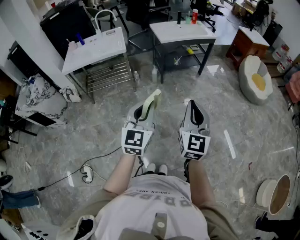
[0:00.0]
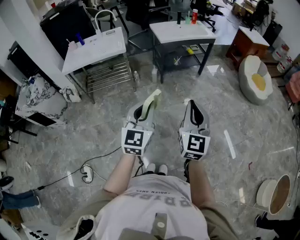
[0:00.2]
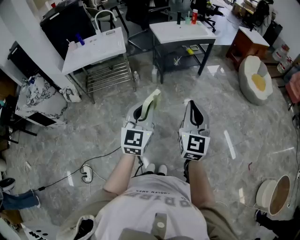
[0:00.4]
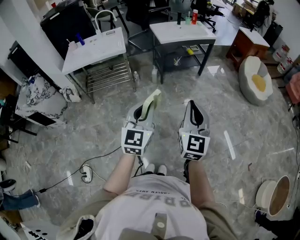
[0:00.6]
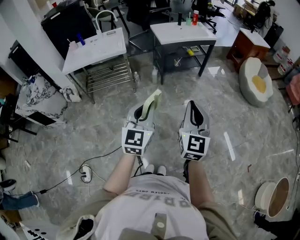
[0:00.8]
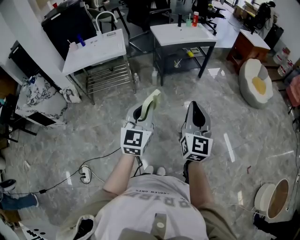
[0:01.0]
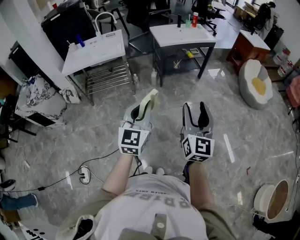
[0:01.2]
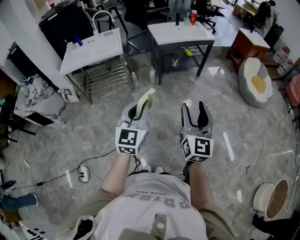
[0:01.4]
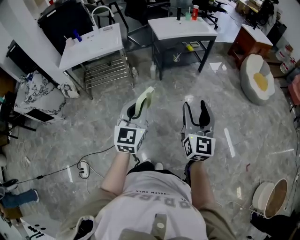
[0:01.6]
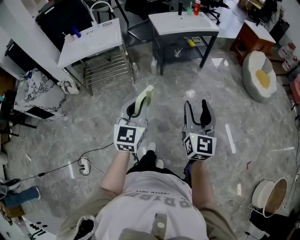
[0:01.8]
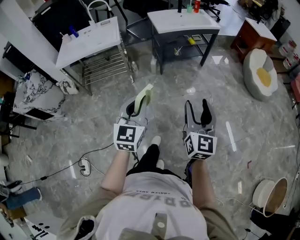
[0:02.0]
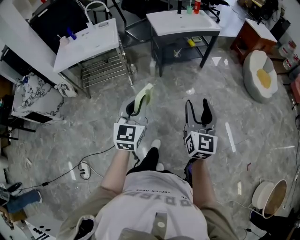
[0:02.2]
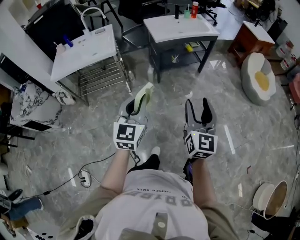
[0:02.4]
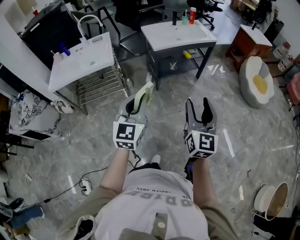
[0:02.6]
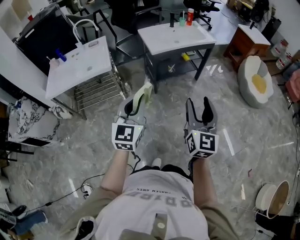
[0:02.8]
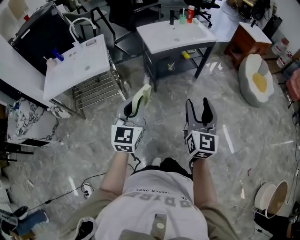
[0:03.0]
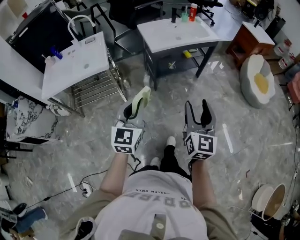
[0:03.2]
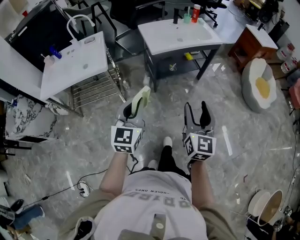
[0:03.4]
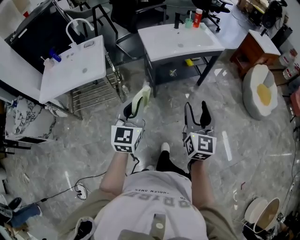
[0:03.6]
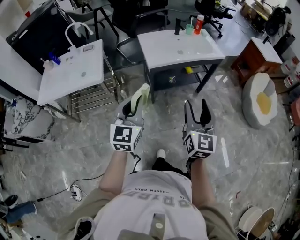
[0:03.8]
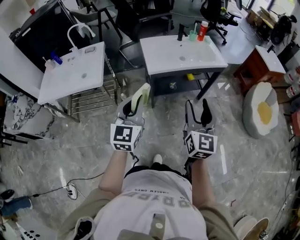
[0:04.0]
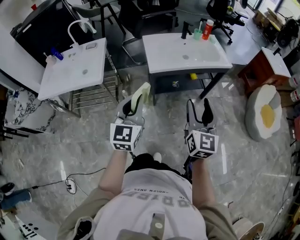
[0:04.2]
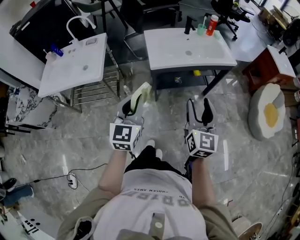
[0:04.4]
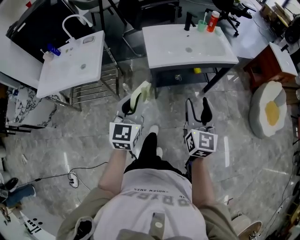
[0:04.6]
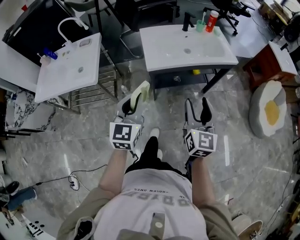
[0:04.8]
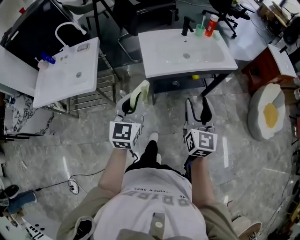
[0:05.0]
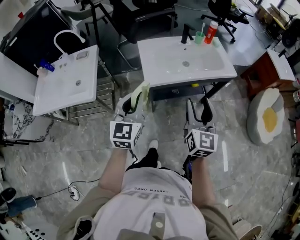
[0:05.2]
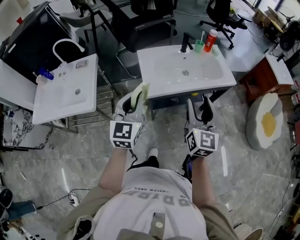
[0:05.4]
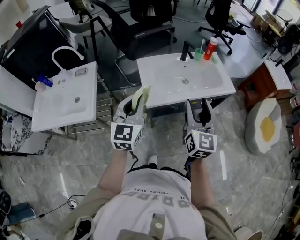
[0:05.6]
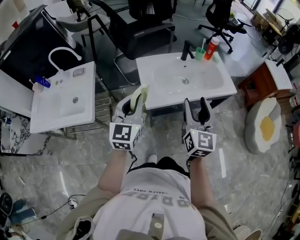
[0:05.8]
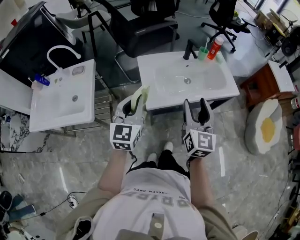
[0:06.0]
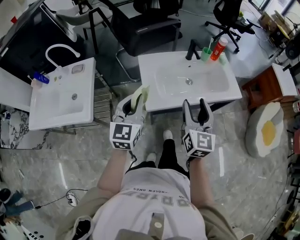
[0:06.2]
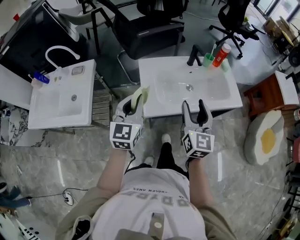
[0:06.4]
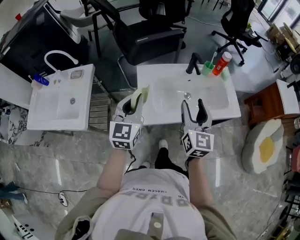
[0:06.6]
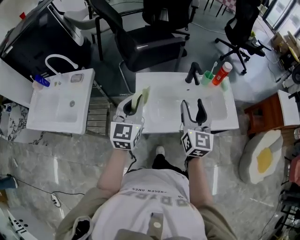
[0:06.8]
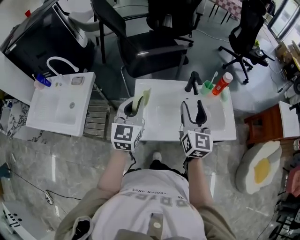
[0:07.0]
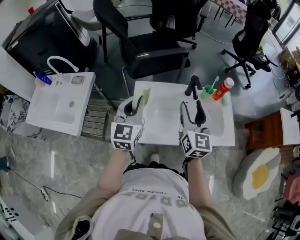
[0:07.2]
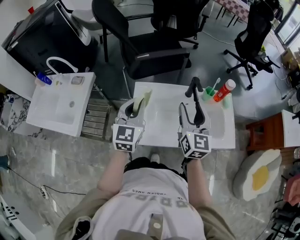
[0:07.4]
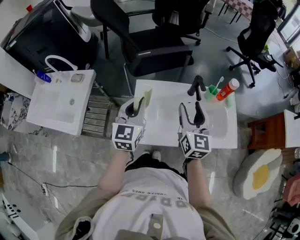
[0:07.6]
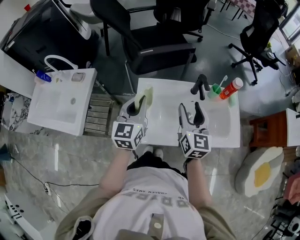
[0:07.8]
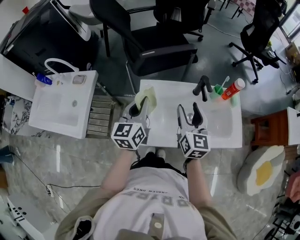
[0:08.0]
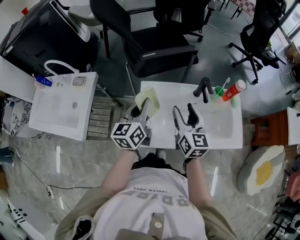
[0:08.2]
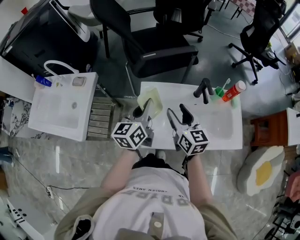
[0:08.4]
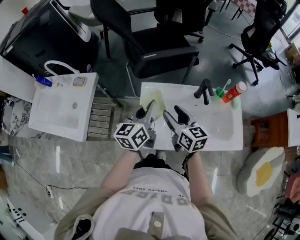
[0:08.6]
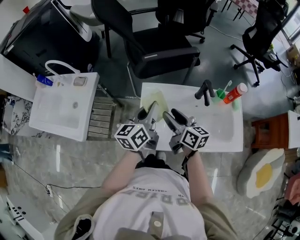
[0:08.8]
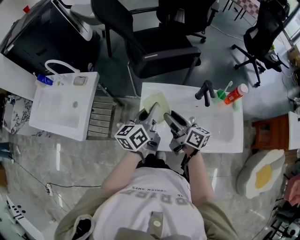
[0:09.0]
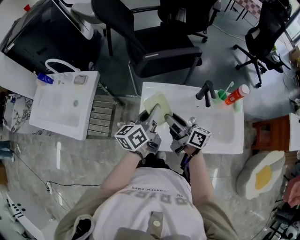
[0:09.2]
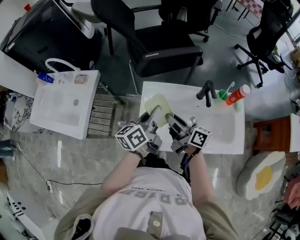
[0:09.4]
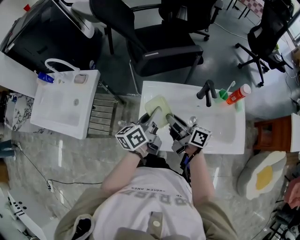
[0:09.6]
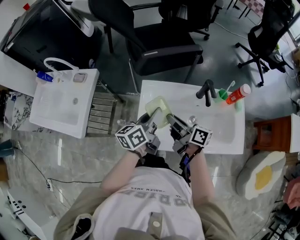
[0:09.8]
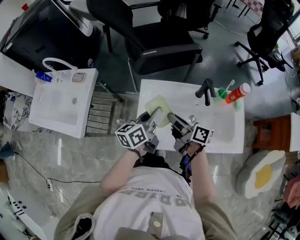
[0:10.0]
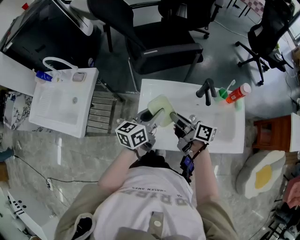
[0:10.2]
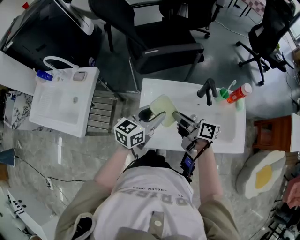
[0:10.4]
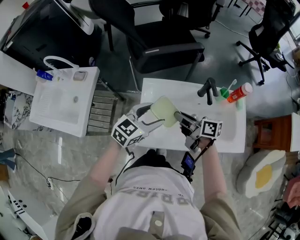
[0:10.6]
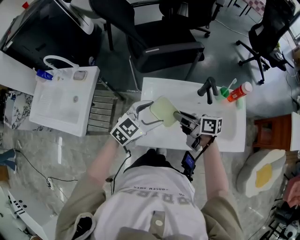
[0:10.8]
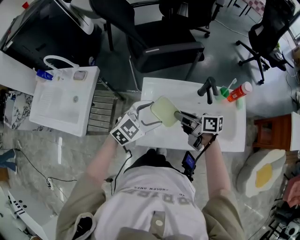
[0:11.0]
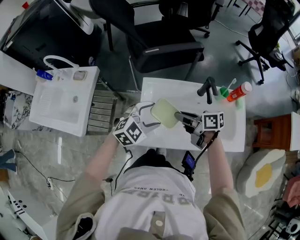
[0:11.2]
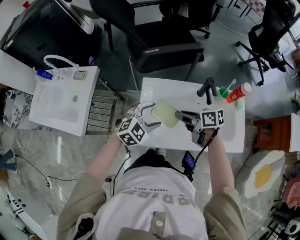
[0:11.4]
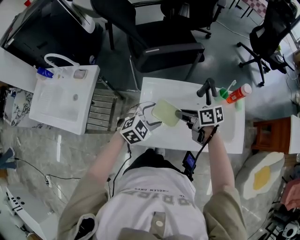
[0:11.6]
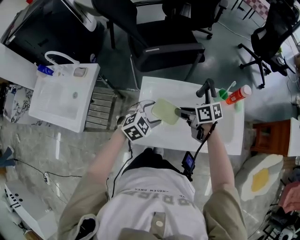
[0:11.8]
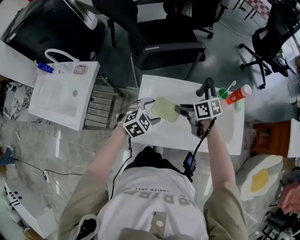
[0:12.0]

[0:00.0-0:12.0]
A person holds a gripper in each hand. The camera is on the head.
0:00.0 to 0:01.6: The right gripper goes about 5 cm to the right, and opens.
0:01.6 to 0:03.0: The two grippers go roughly 25 cm forward.
0:03.0 to 0:04.4: Both grippers travel together forward, some 25 cm.
0:04.4 to 0:06.0: The grippers both shift forward by roughly 25 cm.
0:06.0 to 0:07.6: Both grippers move forward, about 25 cm.
0:07.6 to 0:09.0: The left gripper rotates around the line of its fingers by some 40 degrees, counterclockwise from behind. The right gripper moves to the left and downward, approximately 15 cm, and rotates approximately 60 degrees.
0:09.0 to 0:10.4: The right gripper closes up. Meanwhile the left gripper changes place by about 5 cm, rotates roughly 30 degrees, and opens.
0:10.4 to 0:12.0: The left gripper moves downward, roughly 10 cm, tips its fingers downward by approximately 30 degrees, and opens up, while the right gripper changes its angle by approximately 40 degrees.

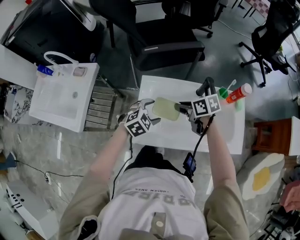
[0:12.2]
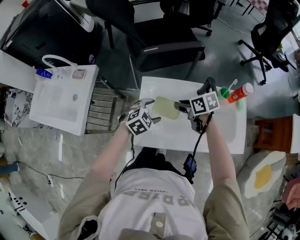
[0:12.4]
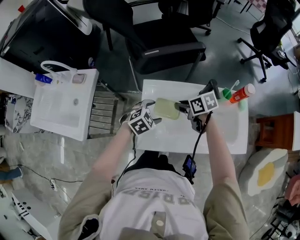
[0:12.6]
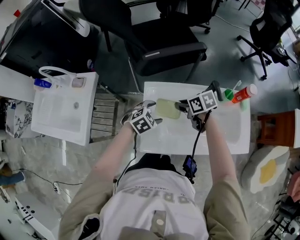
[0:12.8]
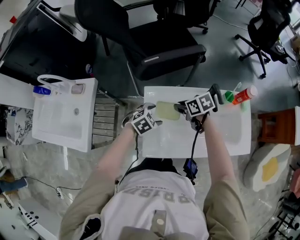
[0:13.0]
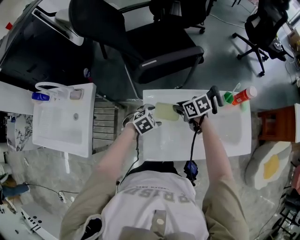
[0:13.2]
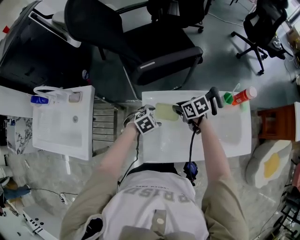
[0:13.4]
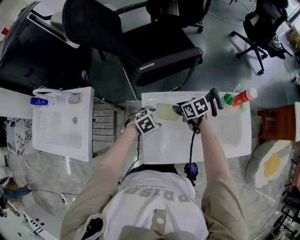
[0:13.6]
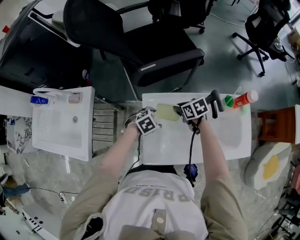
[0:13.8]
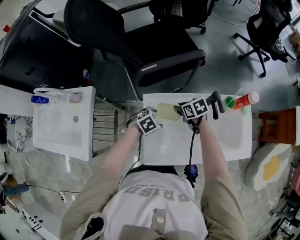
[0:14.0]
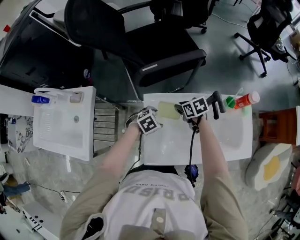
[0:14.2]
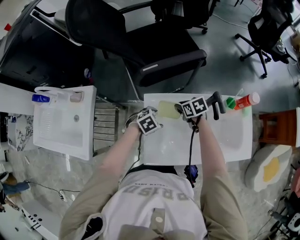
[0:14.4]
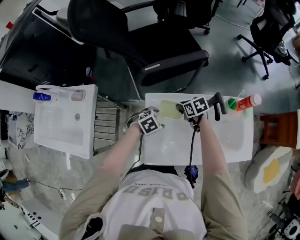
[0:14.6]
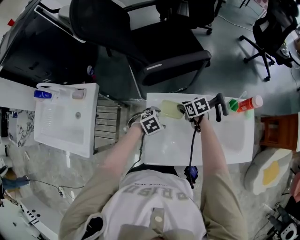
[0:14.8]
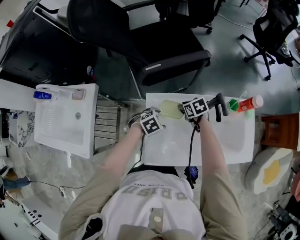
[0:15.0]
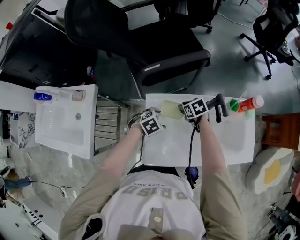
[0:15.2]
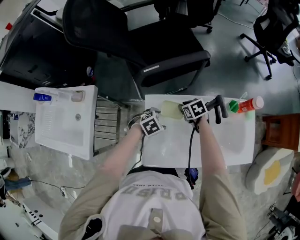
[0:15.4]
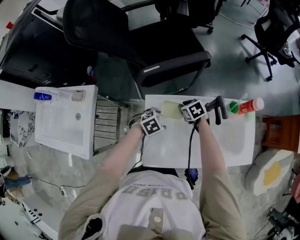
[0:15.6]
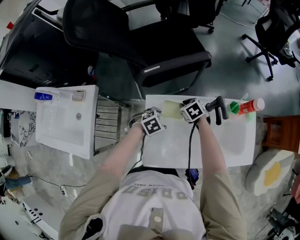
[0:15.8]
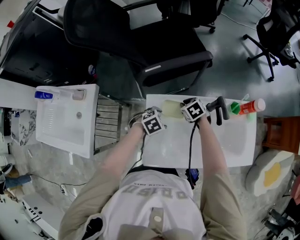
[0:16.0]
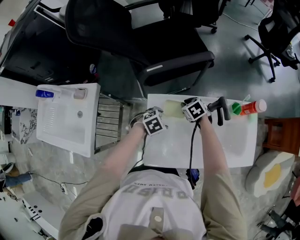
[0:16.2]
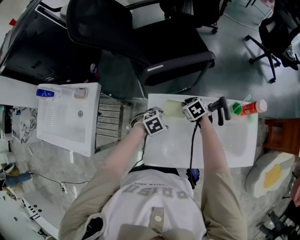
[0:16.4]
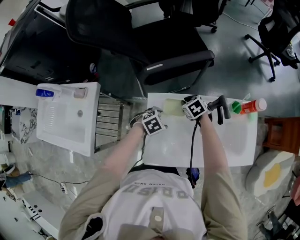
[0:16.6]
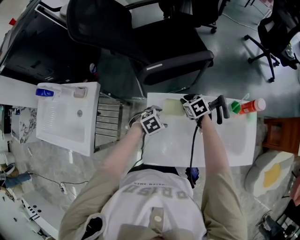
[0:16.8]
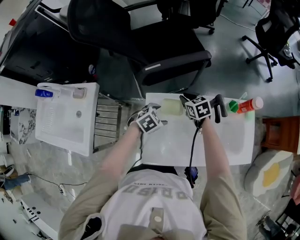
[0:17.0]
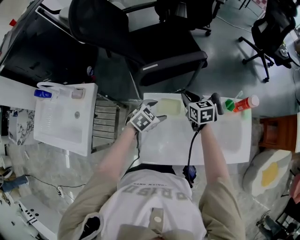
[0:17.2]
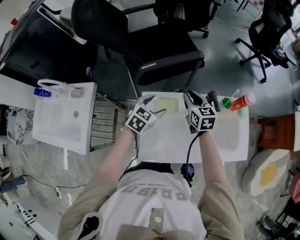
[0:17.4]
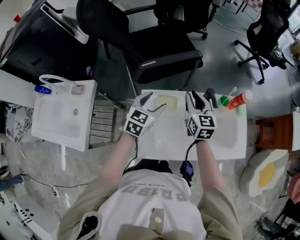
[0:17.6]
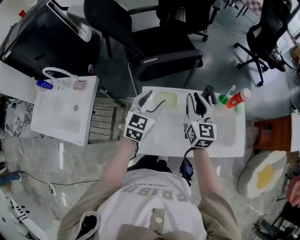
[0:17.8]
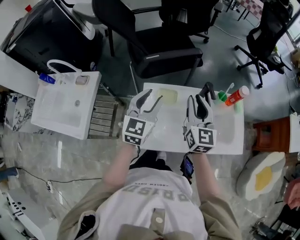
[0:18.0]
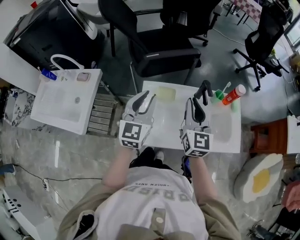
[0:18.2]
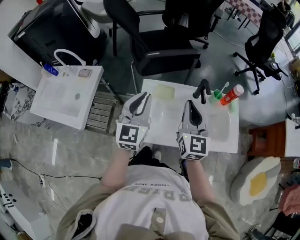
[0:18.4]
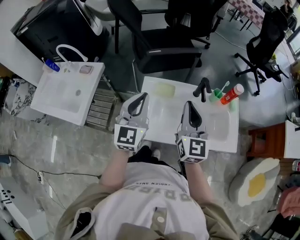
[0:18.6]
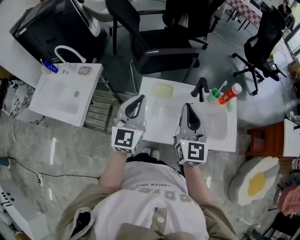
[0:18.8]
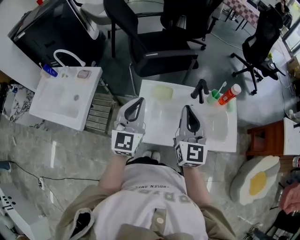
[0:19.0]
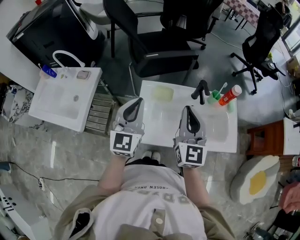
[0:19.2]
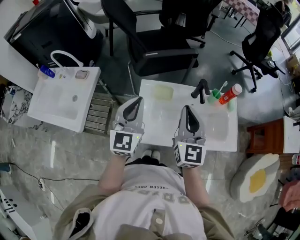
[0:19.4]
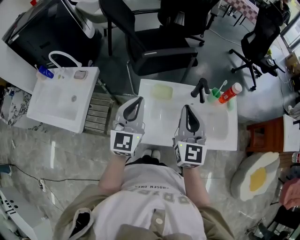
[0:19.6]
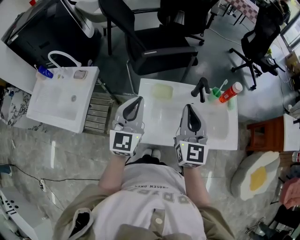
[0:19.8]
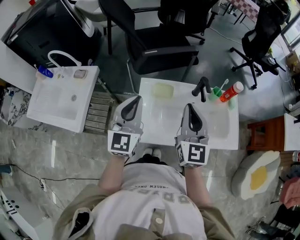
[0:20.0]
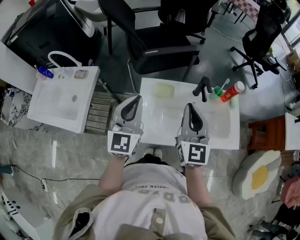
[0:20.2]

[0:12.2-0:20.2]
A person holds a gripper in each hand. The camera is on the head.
0:12.2 to 0:13.8: The right gripper moves roughly 15 cm, while the left gripper goes about 10 cm downward, and changes its angle by roughly 20 degrees.
0:13.8 to 0:15.4: The right gripper shifts by about 5 cm.
0:15.4 to 0:17.0: The right gripper moves upward, roughly 5 cm.
0:17.0 to 0:18.6: The left gripper travels upward by some 30 cm, tilts its fingers roughly 60 degrees upward, and closes. The right gripper heads upward and backward, covering approximately 35 cm, and tips its fingers upward by approximately 50 degrees.
0:18.6 to 0:20.2: The grippers move only a little.

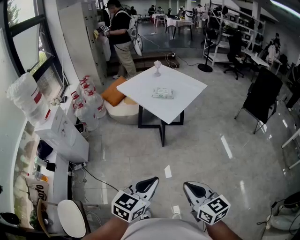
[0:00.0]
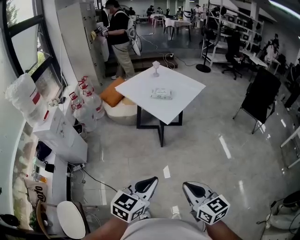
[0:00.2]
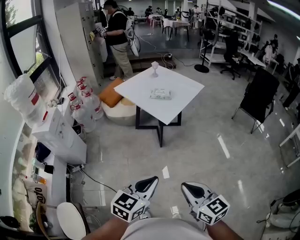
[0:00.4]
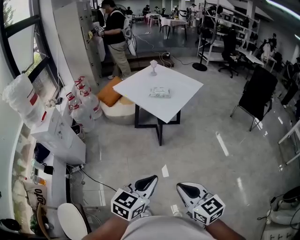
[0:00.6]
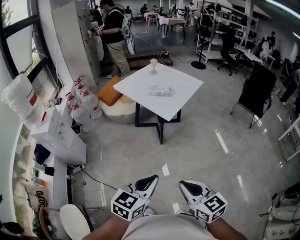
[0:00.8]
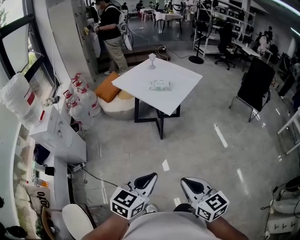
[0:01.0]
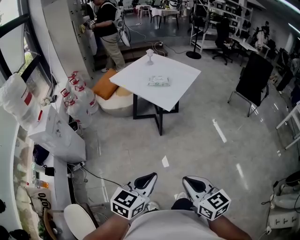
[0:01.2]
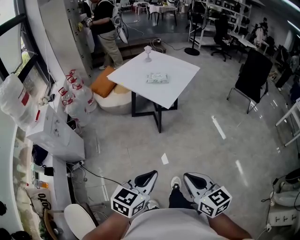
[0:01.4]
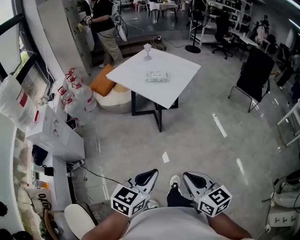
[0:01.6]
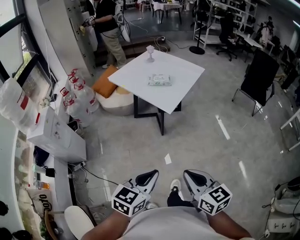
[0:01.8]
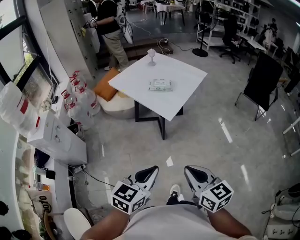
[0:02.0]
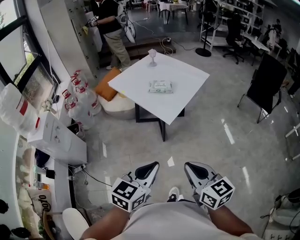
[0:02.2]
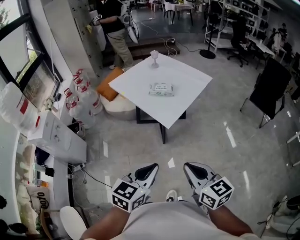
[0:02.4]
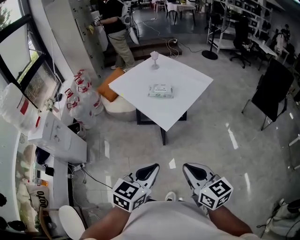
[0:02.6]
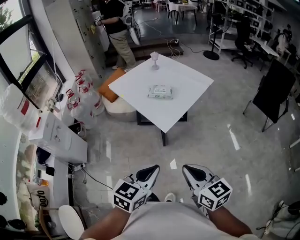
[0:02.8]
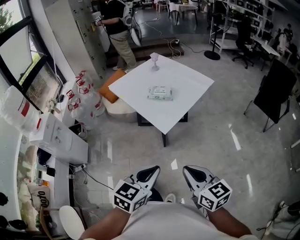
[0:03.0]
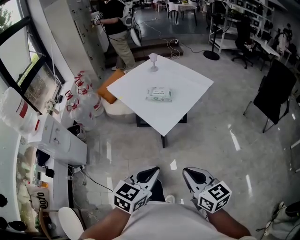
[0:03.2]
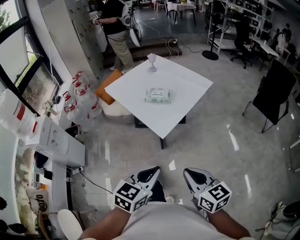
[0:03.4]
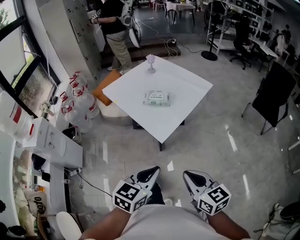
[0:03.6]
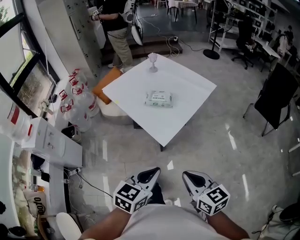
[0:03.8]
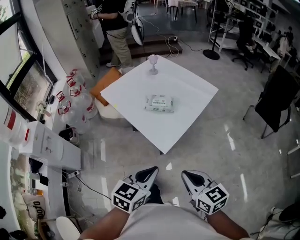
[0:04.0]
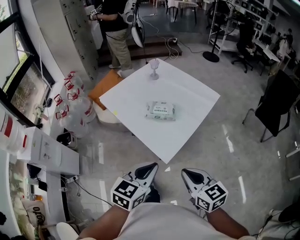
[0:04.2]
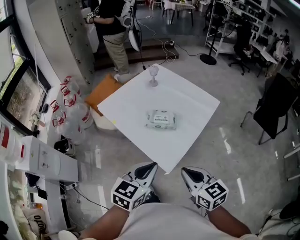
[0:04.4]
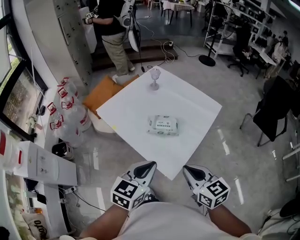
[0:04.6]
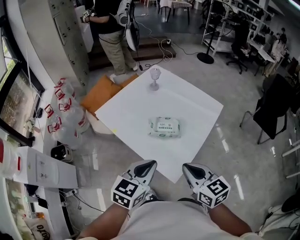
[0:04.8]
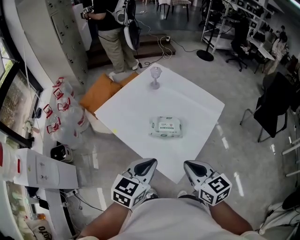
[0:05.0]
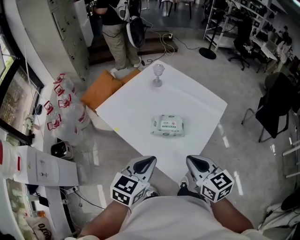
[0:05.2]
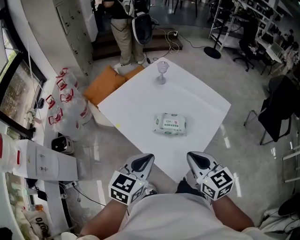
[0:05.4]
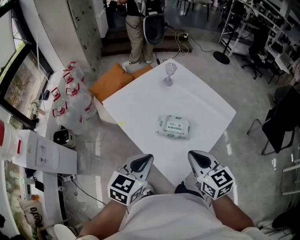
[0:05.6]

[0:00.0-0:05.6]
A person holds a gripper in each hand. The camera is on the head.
0:00.0 to 0:01.4: The two grippers go approximately 5 cm to the left.
0:01.4 to 0:02.8: The left gripper travels forward and to the right by about 25 cm. The right gripper travels forward by approximately 25 cm.
0:02.8 to 0:04.2: Both grippers move forward, roughly 20 cm.
0:04.2 to 0:05.6: The left gripper heads forward and to the left, covering roughly 20 cm; the right gripper goes roughly 20 cm forward.
